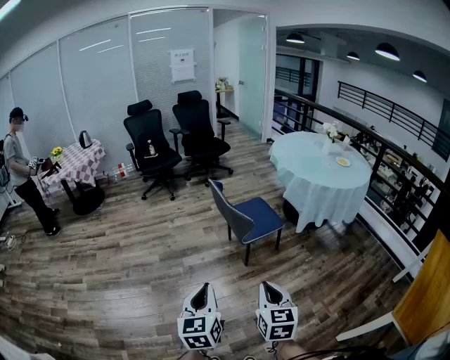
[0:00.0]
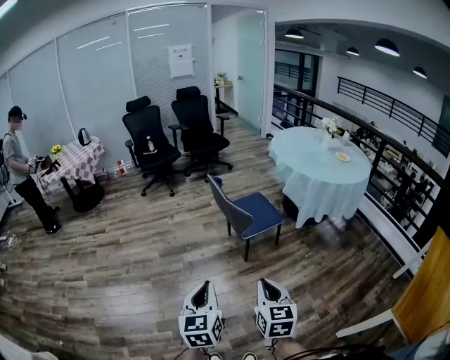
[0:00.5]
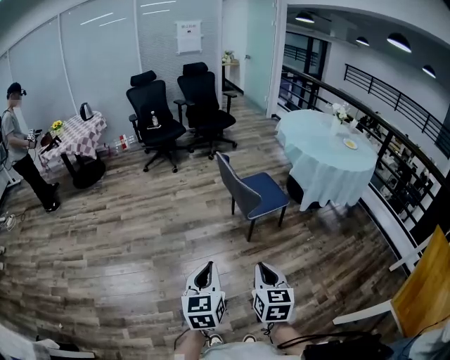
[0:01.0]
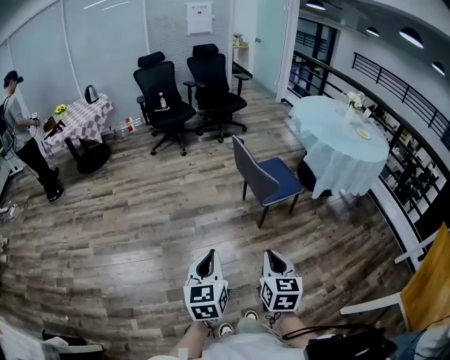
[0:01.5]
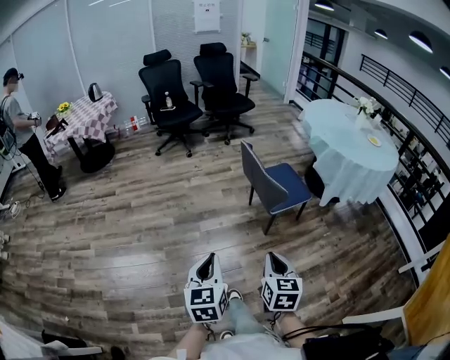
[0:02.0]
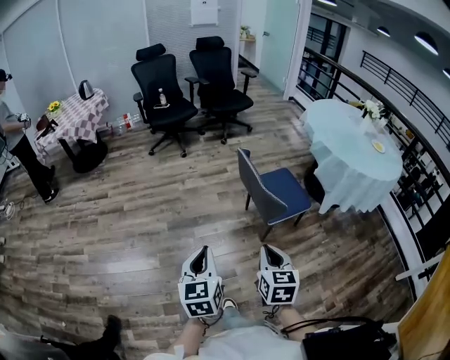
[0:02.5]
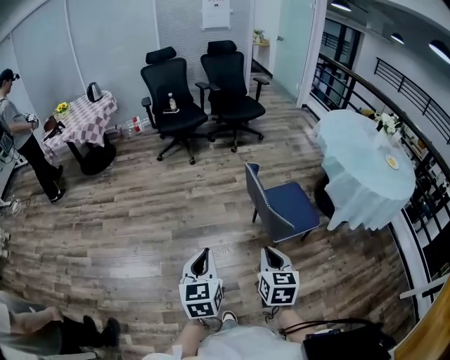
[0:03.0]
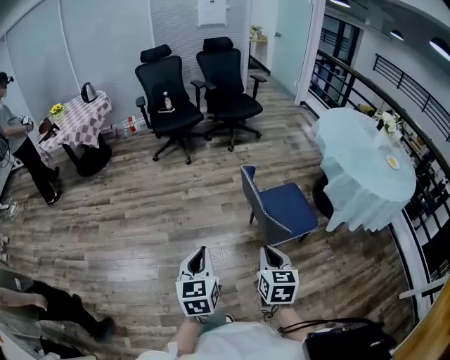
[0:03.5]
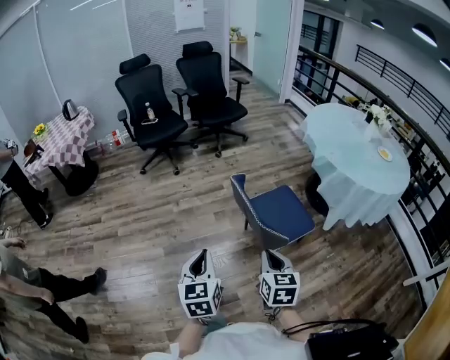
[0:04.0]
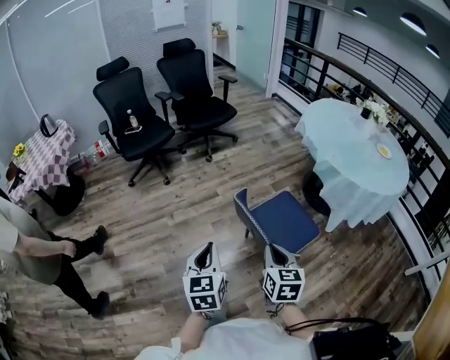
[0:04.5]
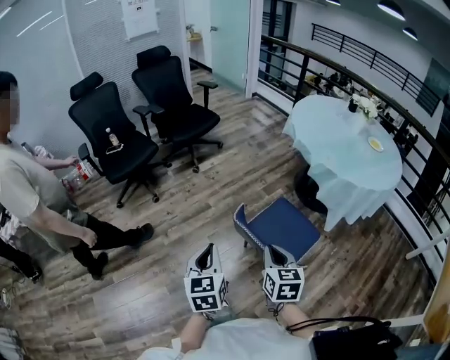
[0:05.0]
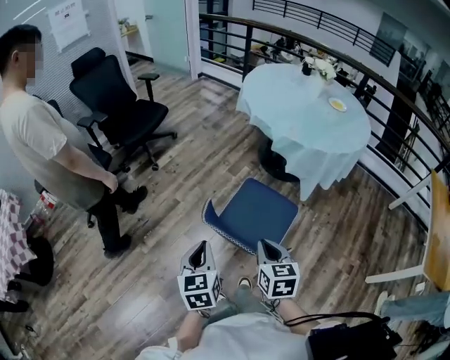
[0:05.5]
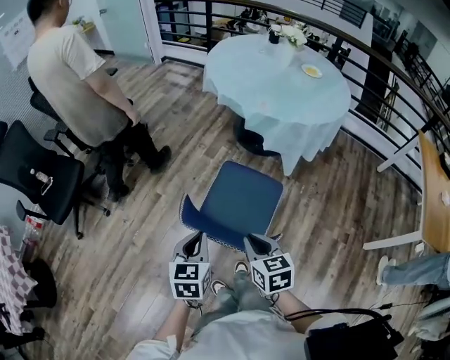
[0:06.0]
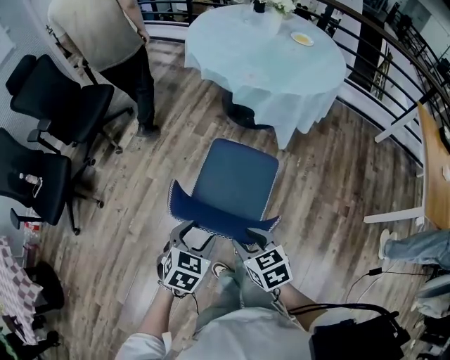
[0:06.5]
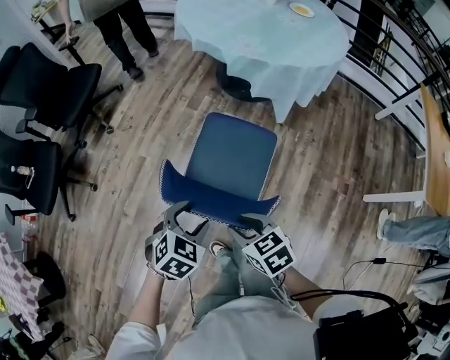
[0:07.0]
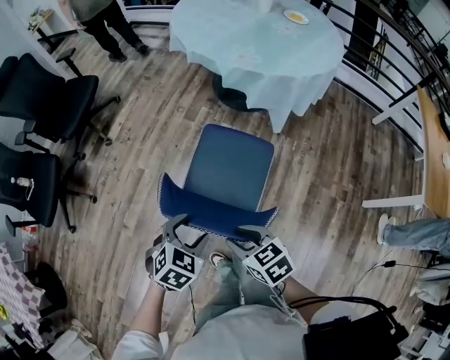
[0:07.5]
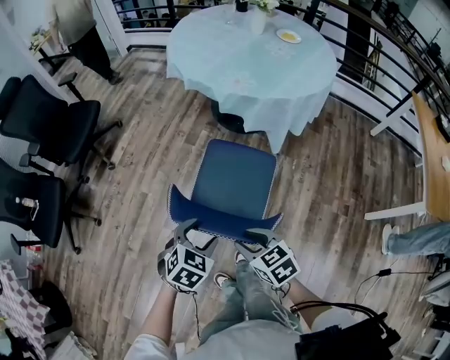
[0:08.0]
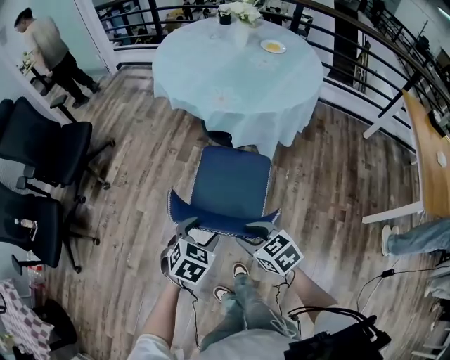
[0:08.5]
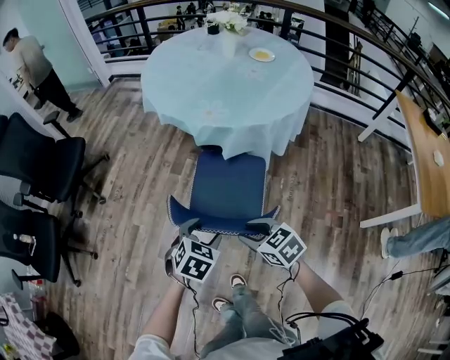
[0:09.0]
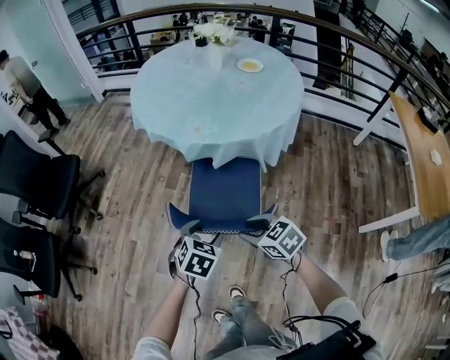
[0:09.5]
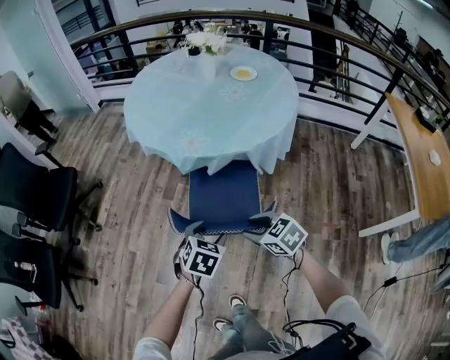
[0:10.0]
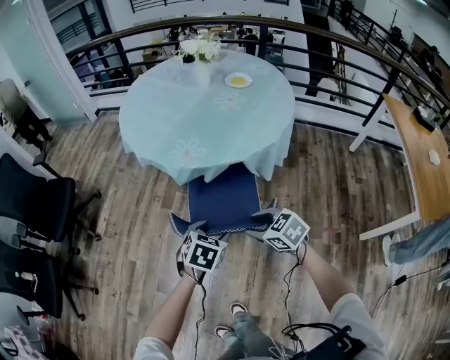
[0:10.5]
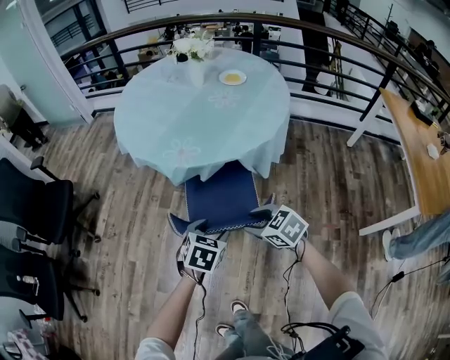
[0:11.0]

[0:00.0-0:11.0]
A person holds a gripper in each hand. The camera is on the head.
0.0 to 2.0 s: Both grippers move to the left, forward and downward, some 15 cm.
2.0 to 3.5 s: Both grippers move forward, about 25 cm.
3.5 to 5.5 s: The right gripper changes place by roughly 25 cm, and turns by some 30 degrees, while the left gripper shifts by approximately 35 cm, and turns by approximately 40 degrees.
5.5 to 7.5 s: The right gripper moves downward, approximately 10 cm, rotates roughly 30 degrees, and opens; the left gripper heads downward and to the right, covering approximately 15 cm, swivels about 60 degrees, and opens up.
7.5 to 9.0 s: The grippers both shift forward and to the right by roughly 20 cm.
9.0 to 11.0 s: Both grippers move to the right and forward, roughly 20 cm.

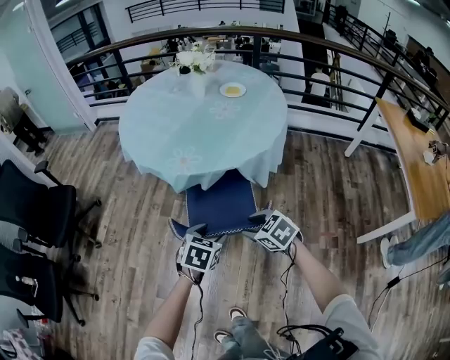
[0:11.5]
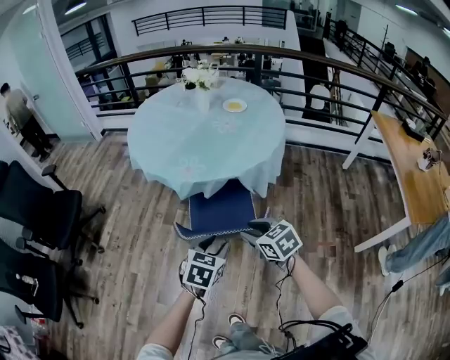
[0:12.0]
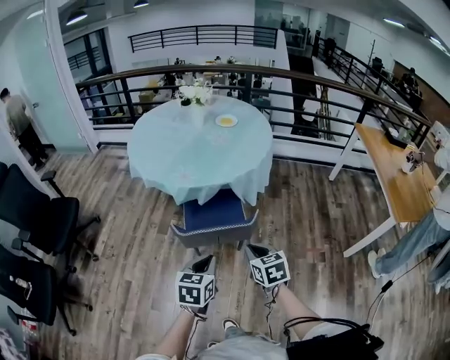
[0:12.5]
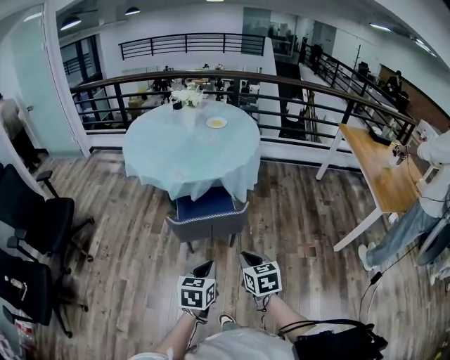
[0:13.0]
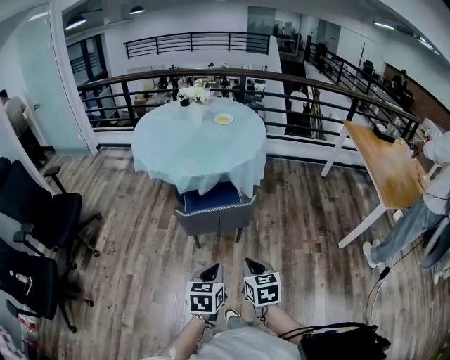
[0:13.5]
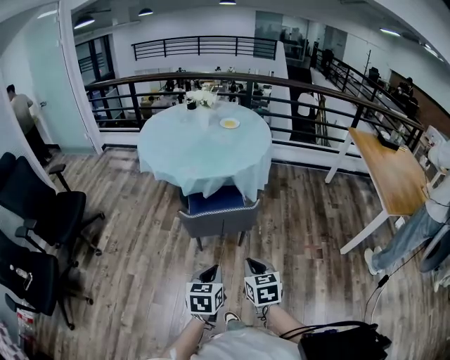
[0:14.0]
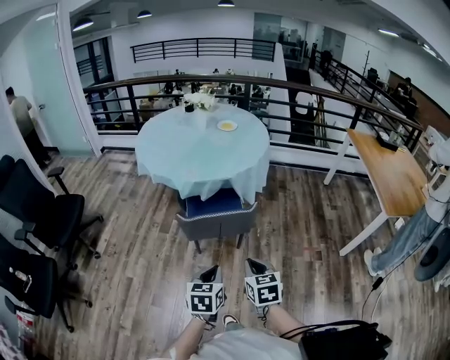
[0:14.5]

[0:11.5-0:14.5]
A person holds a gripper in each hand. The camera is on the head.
11.5 to 13.0 s: The grippers both shift backward by some 25 cm. The left gripper closes up; the right gripper rotates about 40 degrees, and closes.
13.0 to 14.5 s: The grippers stay close to where they were, moving slightly.

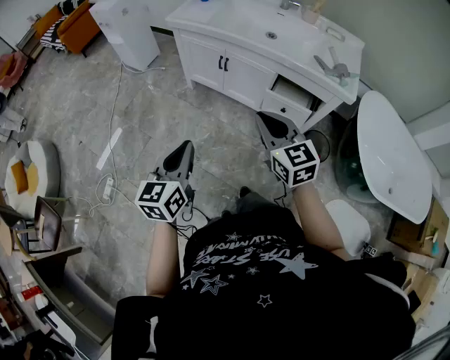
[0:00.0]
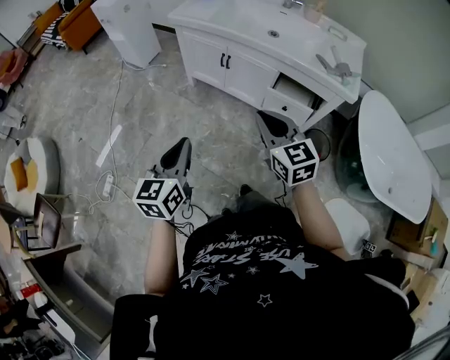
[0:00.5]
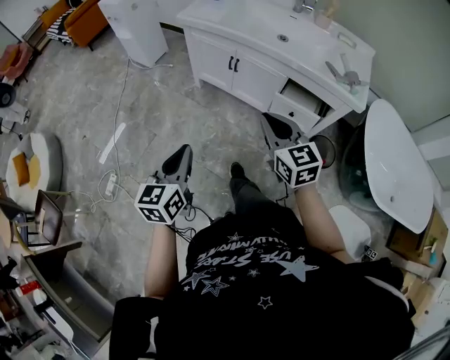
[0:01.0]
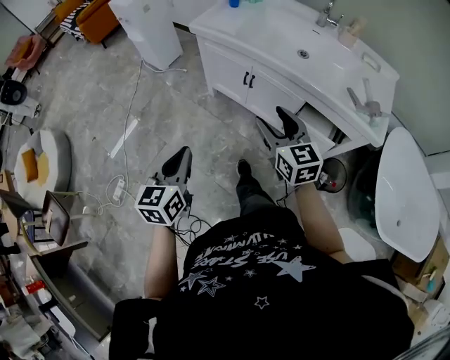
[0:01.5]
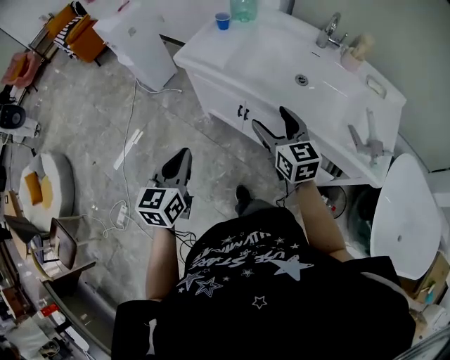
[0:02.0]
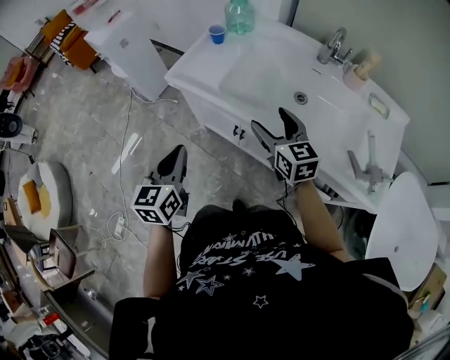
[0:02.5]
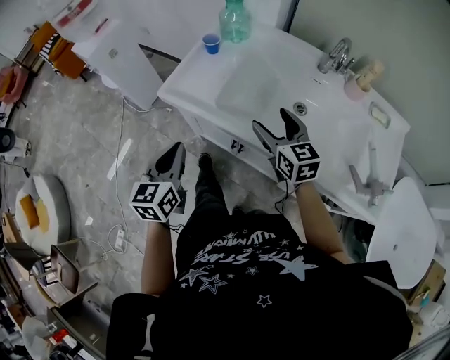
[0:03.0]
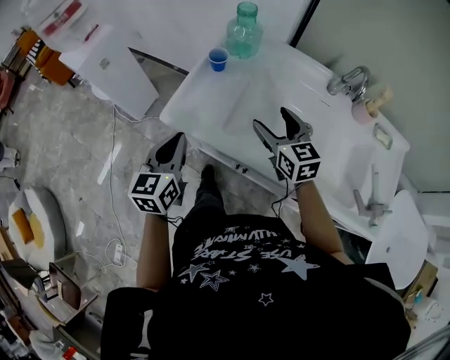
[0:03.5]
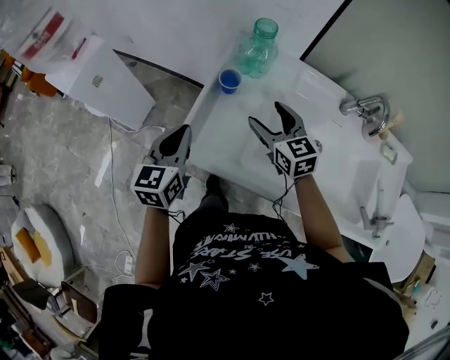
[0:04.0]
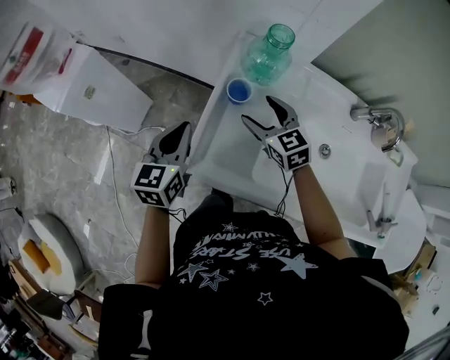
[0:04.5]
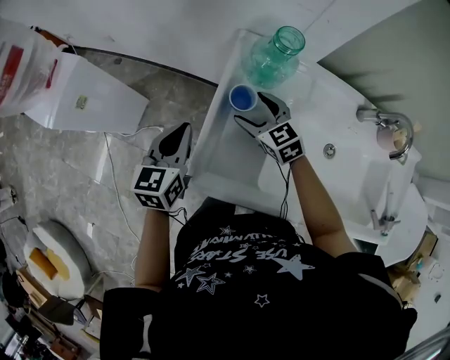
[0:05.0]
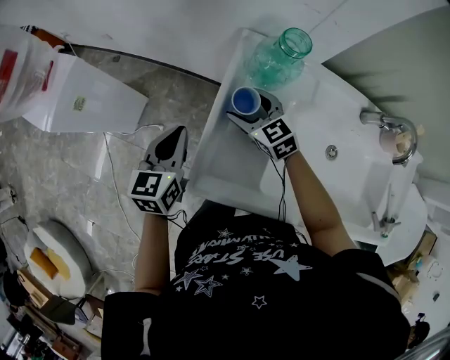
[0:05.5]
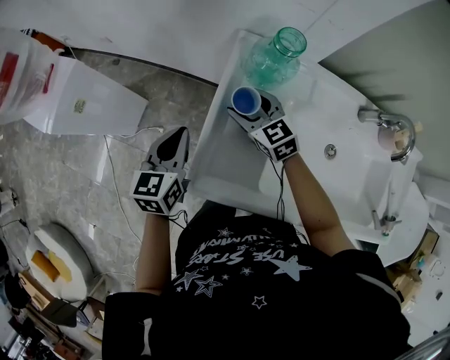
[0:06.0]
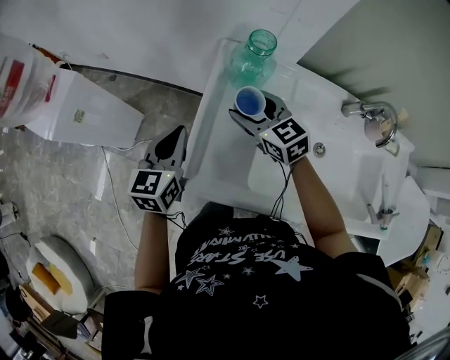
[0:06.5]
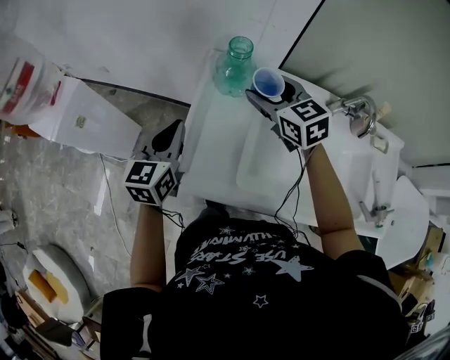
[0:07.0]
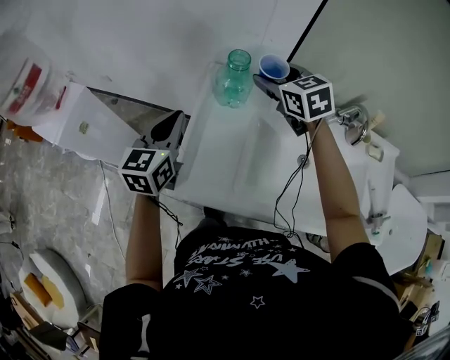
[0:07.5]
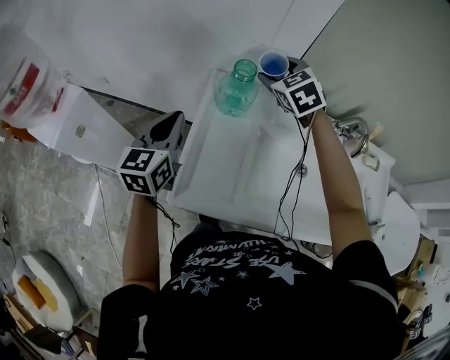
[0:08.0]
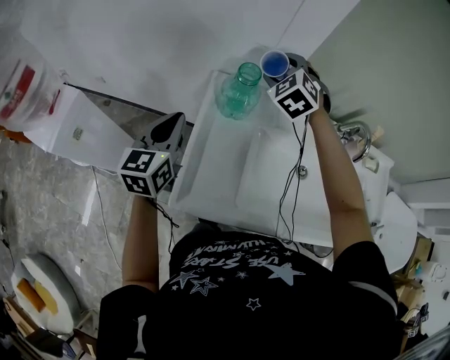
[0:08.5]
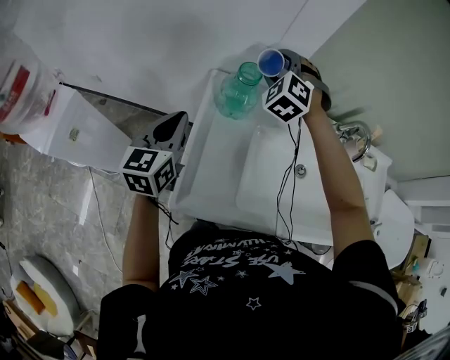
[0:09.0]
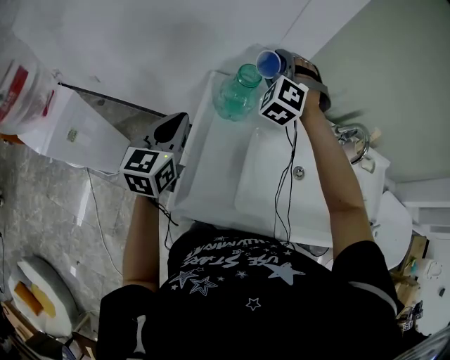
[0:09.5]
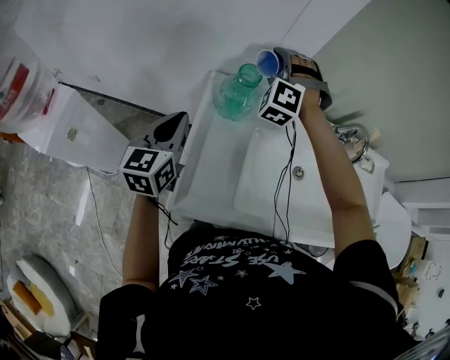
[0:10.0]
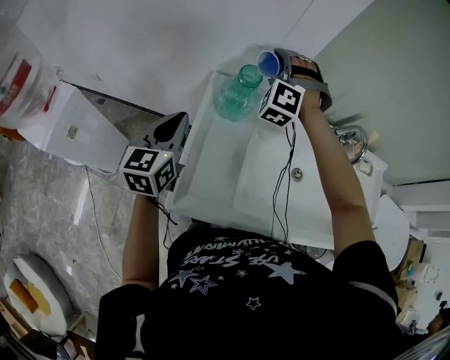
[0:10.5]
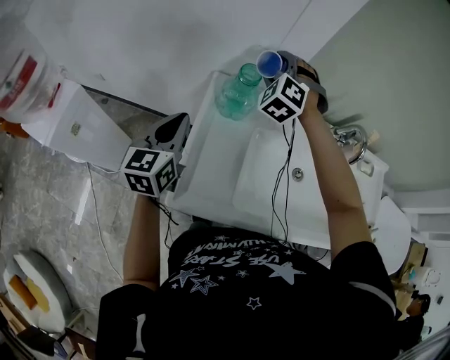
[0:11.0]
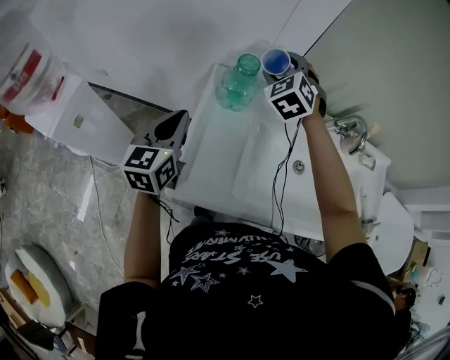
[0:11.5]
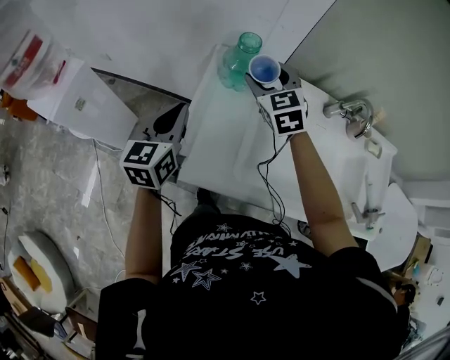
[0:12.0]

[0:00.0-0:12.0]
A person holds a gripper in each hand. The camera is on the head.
0.0 to 2.0 s: The grippers both shift forward by approximately 35 cm. The right gripper opens its fingers.
2.0 to 4.0 s: Both grippers are carried forward, about 40 cm.
4.0 to 6.0 s: The right gripper travels forward, to the left and downward by roughly 20 cm. The left gripper goes about 15 cm forward and downward.
6.0 to 8.0 s: The left gripper heads upward and to the right, covering approximately 15 cm. The right gripper goes some 25 cm upward, to the right and forward, and turns by some 30 degrees.
8.0 to 10.0 s: The right gripper rolls counterclockwise, seen from behind, by approximately 50 degrees.
10.0 to 12.0 s: The right gripper moves backward, approximately 10 cm, and rotates around the line of its fingers by some 60 degrees, clockwise from behind. The left gripper is displaced backward by about 10 cm.

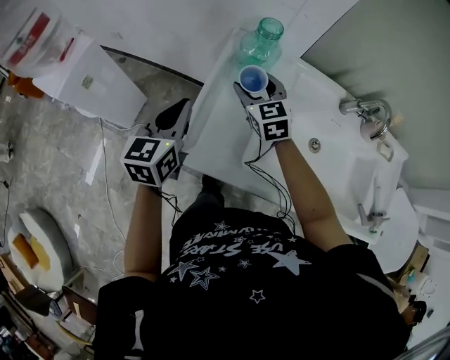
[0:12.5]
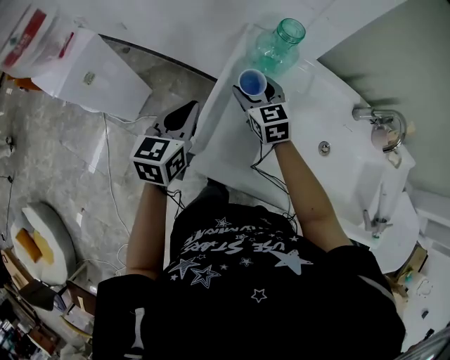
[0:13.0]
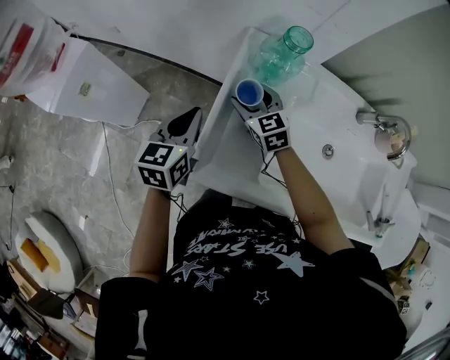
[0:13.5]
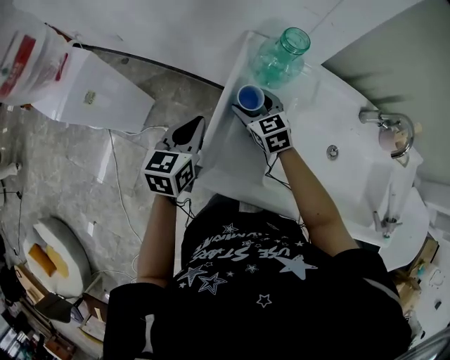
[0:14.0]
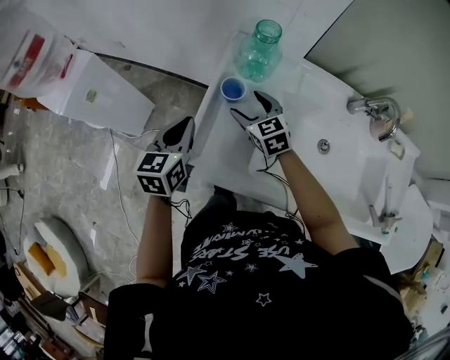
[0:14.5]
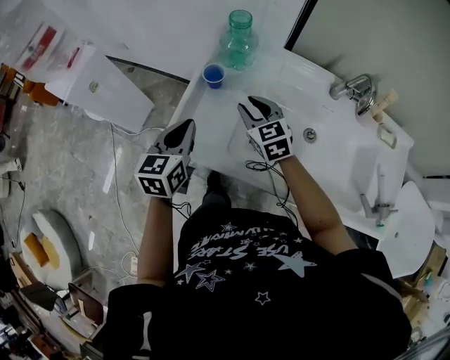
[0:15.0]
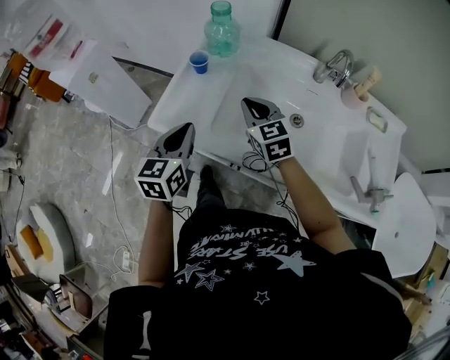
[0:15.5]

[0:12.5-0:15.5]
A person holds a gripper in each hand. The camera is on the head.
12.5 to 14.0 s: Both grippers travel together downward, roughly 10 cm.
14.0 to 15.5 s: The left gripper shifts some 25 cm backward and to the right; the right gripper travels backward, to the right and upward by about 30 cm, and closes its fingers.
